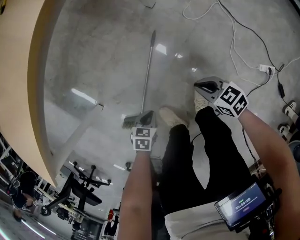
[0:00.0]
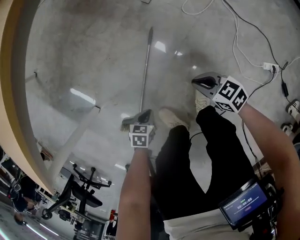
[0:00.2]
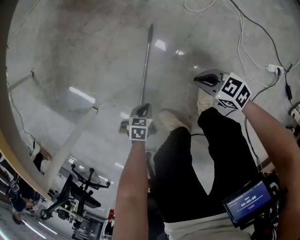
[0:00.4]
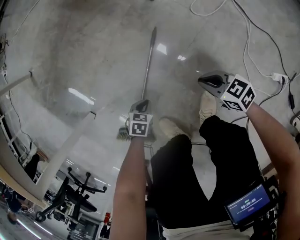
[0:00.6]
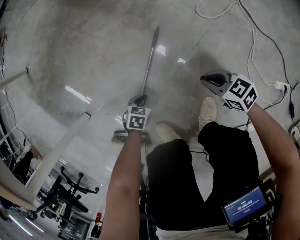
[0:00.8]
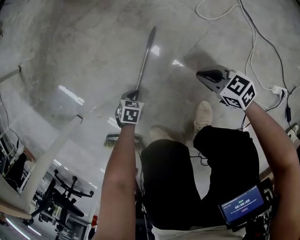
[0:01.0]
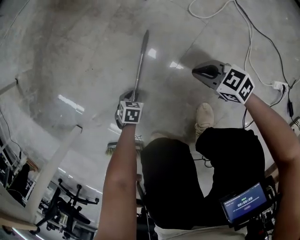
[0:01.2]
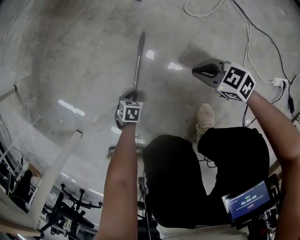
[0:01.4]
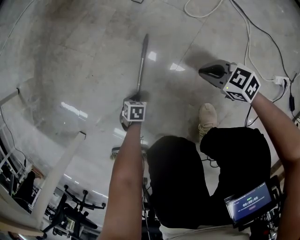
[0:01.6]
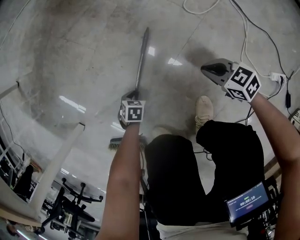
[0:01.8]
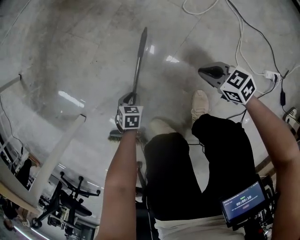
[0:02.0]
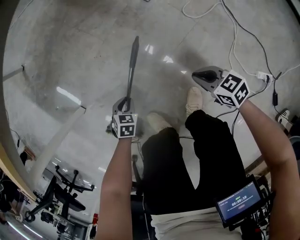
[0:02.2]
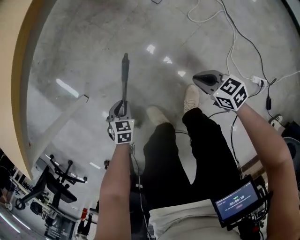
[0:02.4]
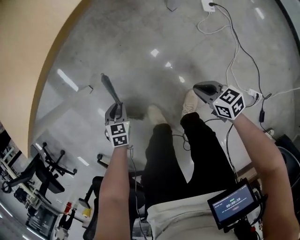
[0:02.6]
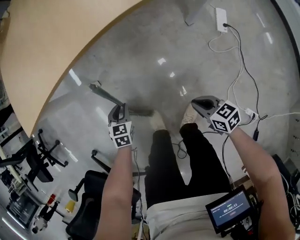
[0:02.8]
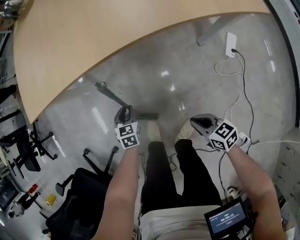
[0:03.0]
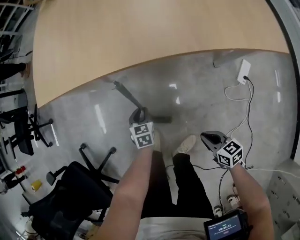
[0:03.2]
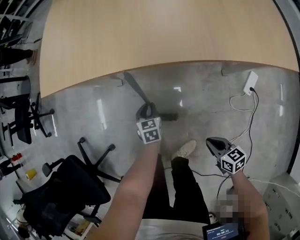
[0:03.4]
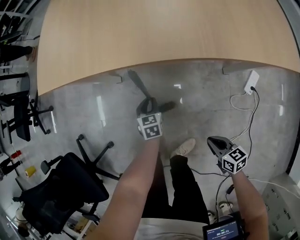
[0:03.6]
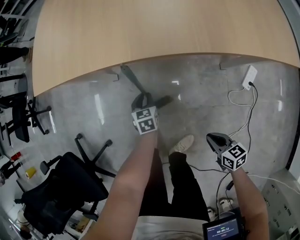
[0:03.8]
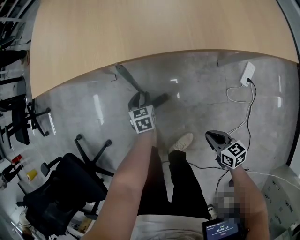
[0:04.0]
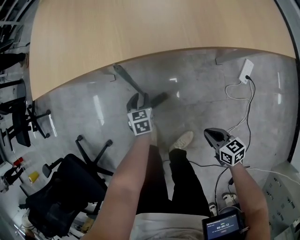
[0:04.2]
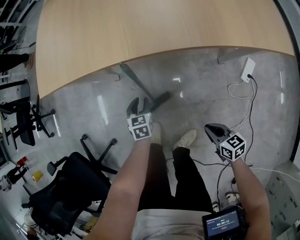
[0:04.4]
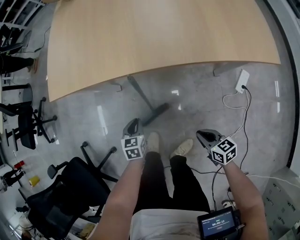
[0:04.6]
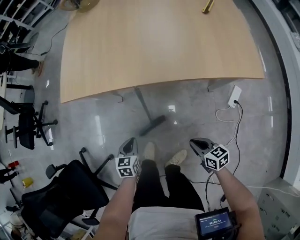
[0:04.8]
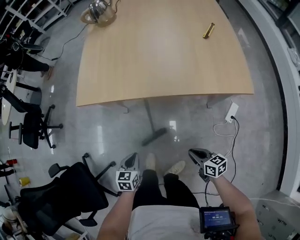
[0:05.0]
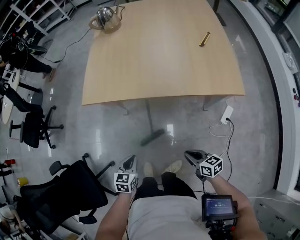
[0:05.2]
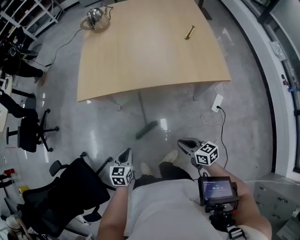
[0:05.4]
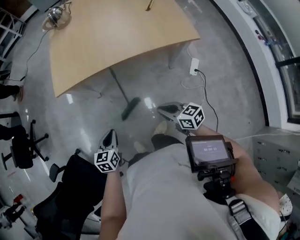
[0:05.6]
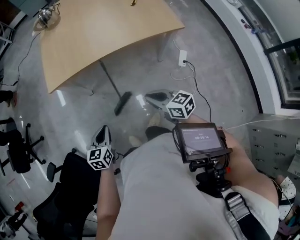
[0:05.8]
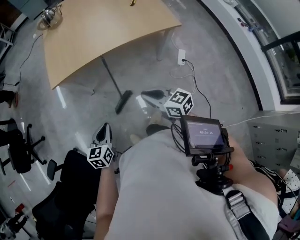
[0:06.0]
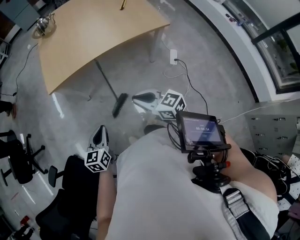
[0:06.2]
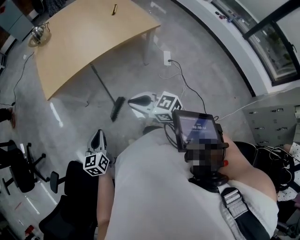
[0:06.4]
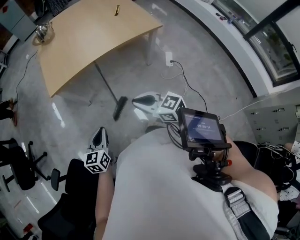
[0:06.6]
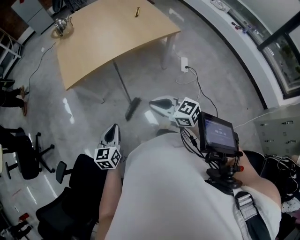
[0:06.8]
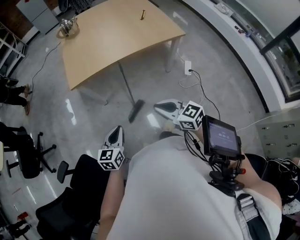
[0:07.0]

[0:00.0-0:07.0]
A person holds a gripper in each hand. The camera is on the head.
0:00.0 to 0:01.4: The right gripper is displaced downward by about 20 cm. Meanwhile the left gripper goes roughly 30 cm downward, and opens.
0:01.4 to 0:02.8: The right gripper moves upward, about 25 cm; the left gripper travels upward by approximately 40 cm, and swivels about 50 degrees.
0:02.8 to 0:04.2: The left gripper shifts roughly 10 cm to the right and forward, and changes its angle by about 30 degrees.
0:04.2 to 0:05.6: The right gripper is displaced upward by approximately 30 cm, while the left gripper heads upward, backward and to the left, covering some 40 cm, rotates some 20 degrees, and closes.
0:05.6 to 0:07.0: The right gripper is displaced upward, backward and to the left by about 20 cm; the left gripper moves upward and backward, roughly 15 cm.

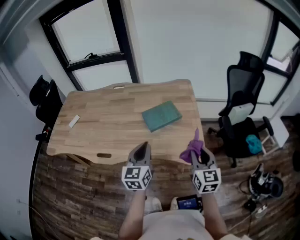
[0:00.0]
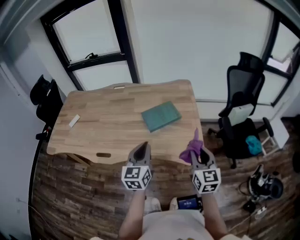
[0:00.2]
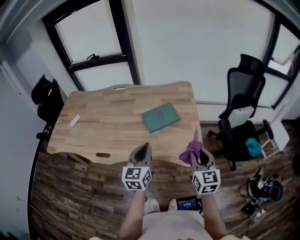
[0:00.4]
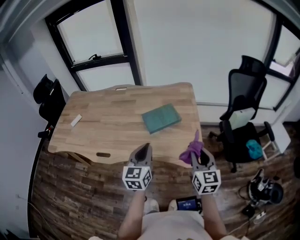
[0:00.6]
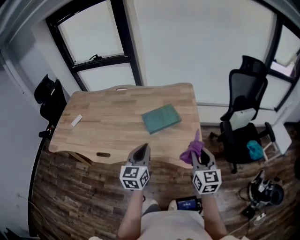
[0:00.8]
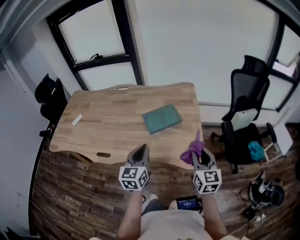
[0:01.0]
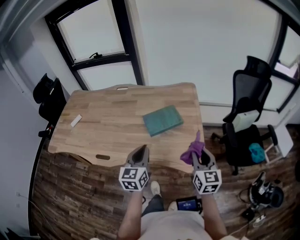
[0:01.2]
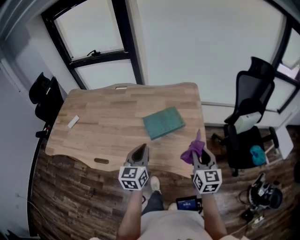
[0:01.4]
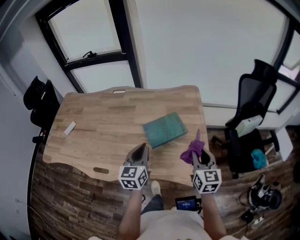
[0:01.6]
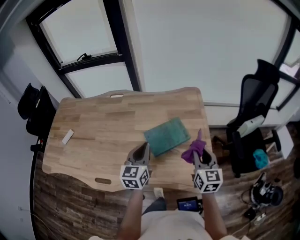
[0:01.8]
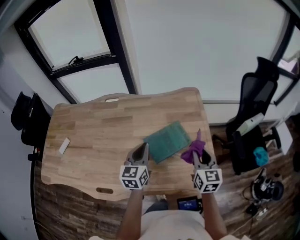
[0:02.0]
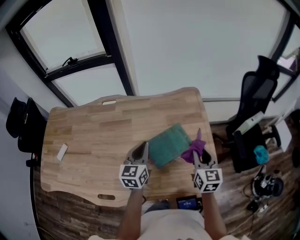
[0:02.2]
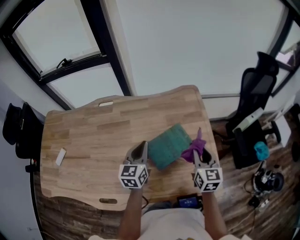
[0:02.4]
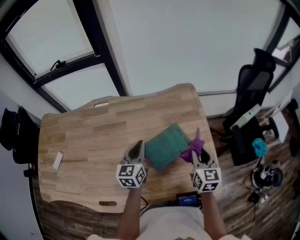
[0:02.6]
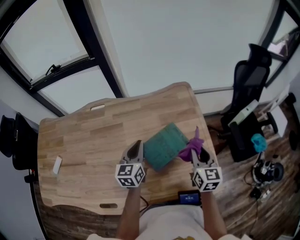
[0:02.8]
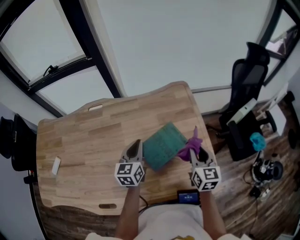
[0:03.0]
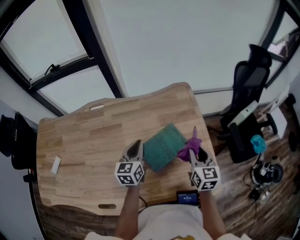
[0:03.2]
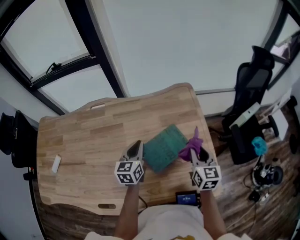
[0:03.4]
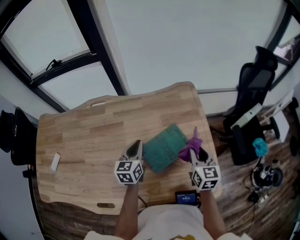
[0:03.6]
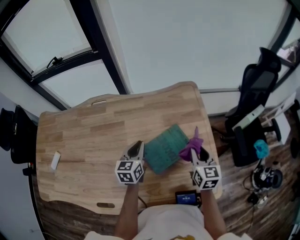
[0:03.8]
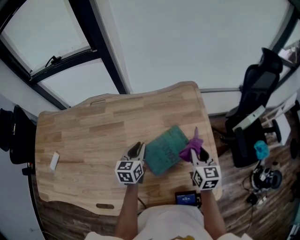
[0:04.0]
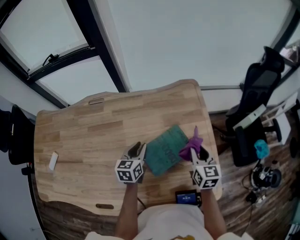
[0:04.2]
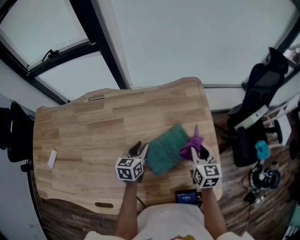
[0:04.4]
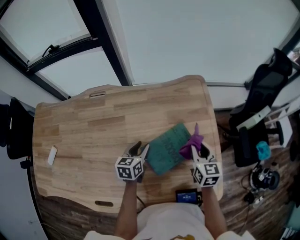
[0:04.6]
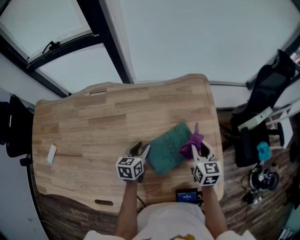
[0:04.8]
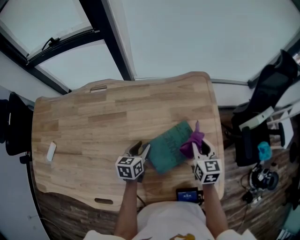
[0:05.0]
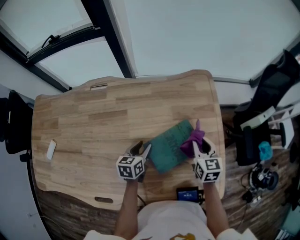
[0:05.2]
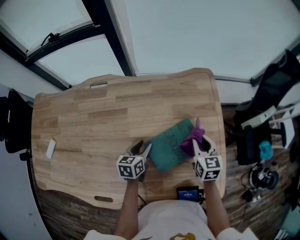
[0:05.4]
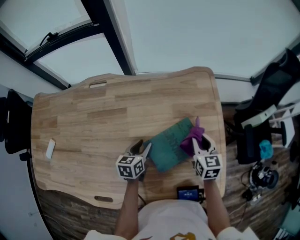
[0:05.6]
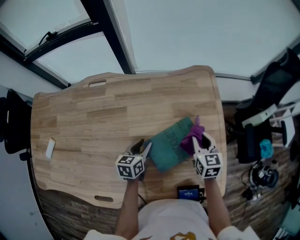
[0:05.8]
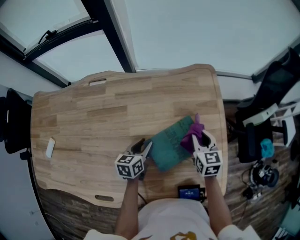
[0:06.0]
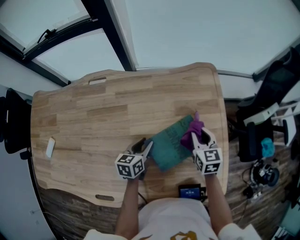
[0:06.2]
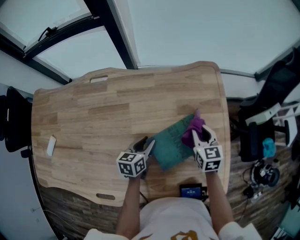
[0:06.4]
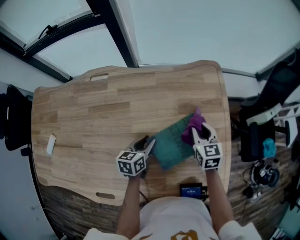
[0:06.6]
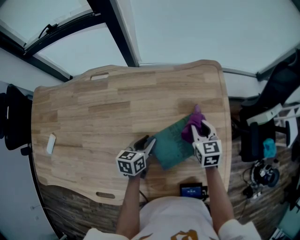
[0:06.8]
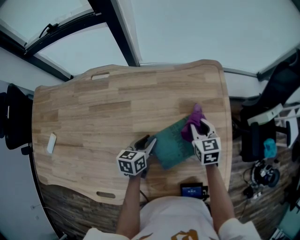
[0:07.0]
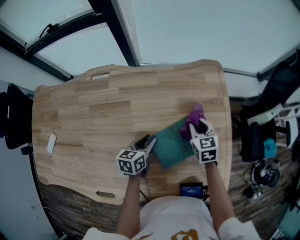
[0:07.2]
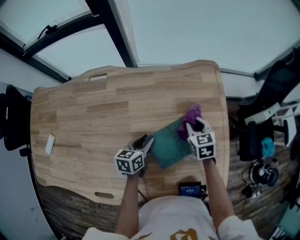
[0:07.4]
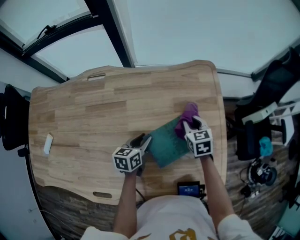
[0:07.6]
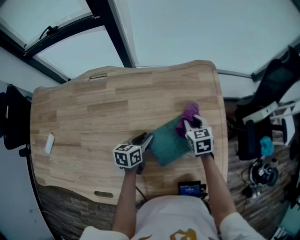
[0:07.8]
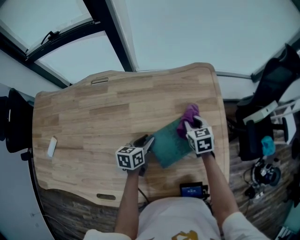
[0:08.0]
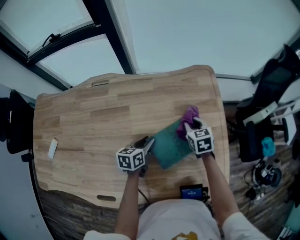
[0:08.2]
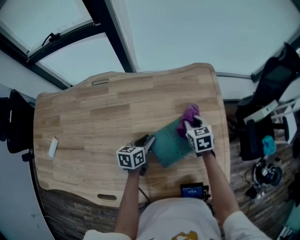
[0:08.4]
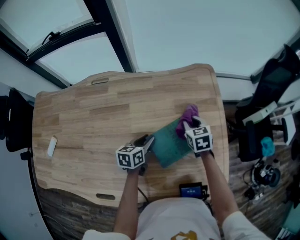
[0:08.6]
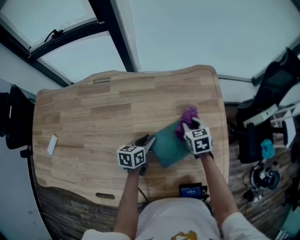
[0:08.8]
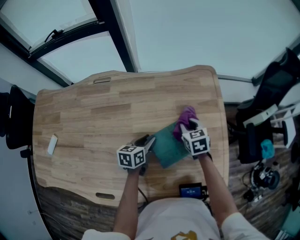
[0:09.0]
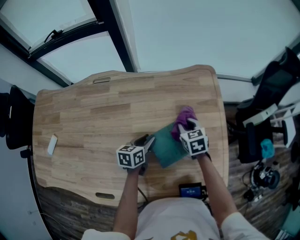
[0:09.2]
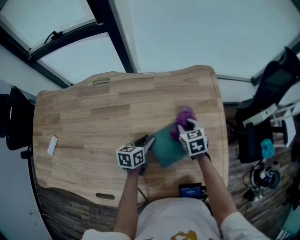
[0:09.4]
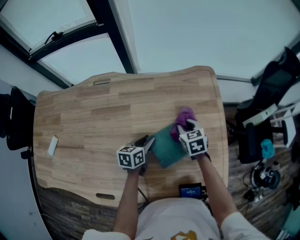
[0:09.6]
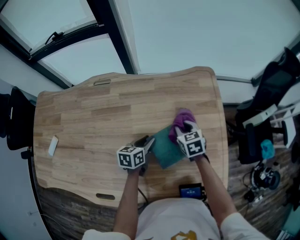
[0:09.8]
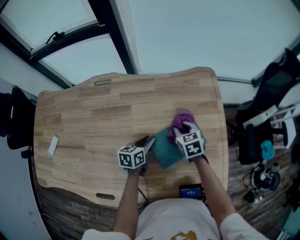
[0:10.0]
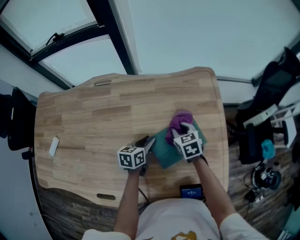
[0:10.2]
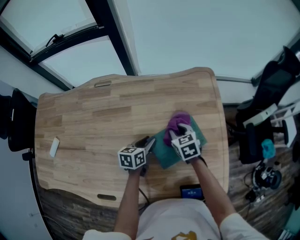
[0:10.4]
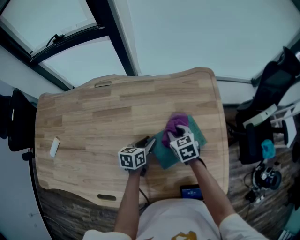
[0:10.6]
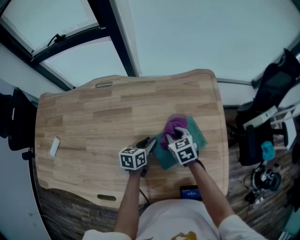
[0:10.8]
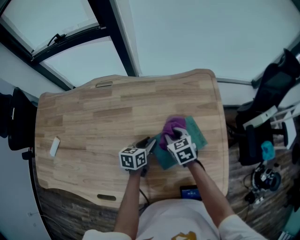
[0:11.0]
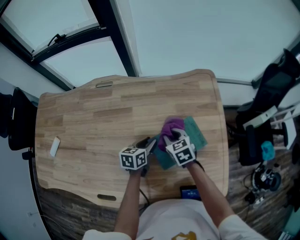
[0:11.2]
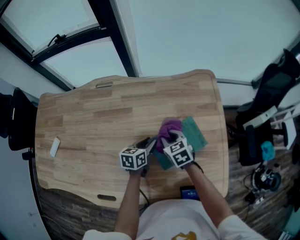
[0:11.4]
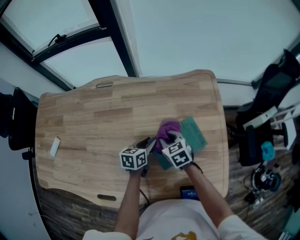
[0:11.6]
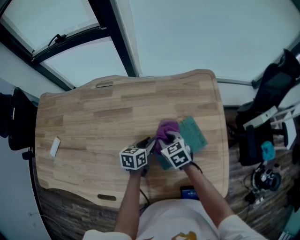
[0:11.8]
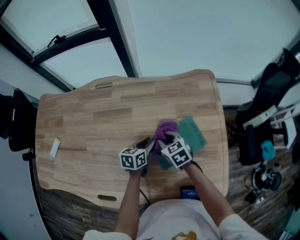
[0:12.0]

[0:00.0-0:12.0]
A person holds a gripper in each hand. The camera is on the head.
0:00.0 to 0:01.6: The grippers both shift forward by roughly 15 cm.
0:01.6 to 0:03.0: The right gripper goes some 10 cm forward, while the left gripper is displaced forward by some 20 cm.
0:03.0 to 0:04.4: The left gripper goes roughly 10 cm downward, and opens up, while the right gripper shifts roughly 10 cm downward and forward.
0:04.4 to 0:06.0: The right gripper goes some 5 cm downward. The left gripper shifts by approximately 5 cm.
0:06.0 to 0:07.6: The right gripper moves roughly 5 cm.
0:07.6 to 0:09.0: The grippers stay close to where they were, moving slightly.
0:09.0 to 0:10.4: The right gripper travels to the left by roughly 5 cm.
0:10.4 to 0:12.0: The right gripper goes some 5 cm to the left.

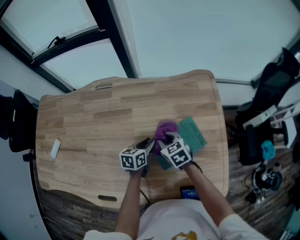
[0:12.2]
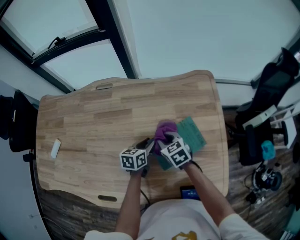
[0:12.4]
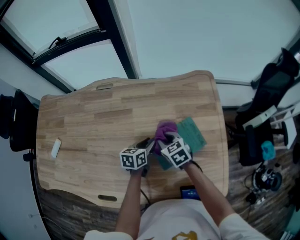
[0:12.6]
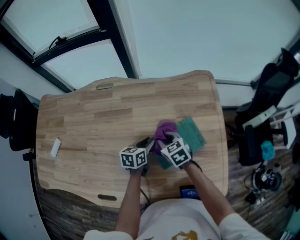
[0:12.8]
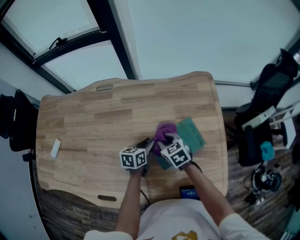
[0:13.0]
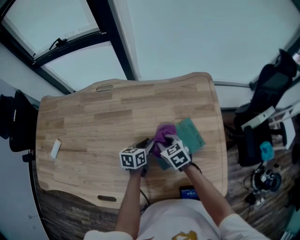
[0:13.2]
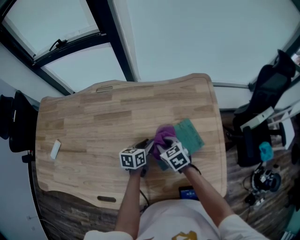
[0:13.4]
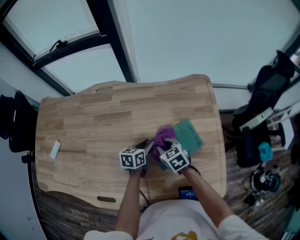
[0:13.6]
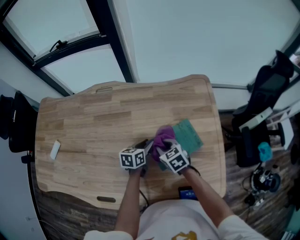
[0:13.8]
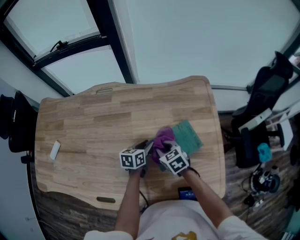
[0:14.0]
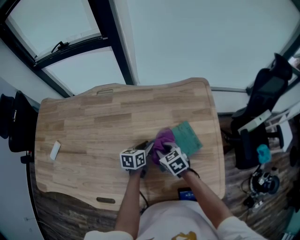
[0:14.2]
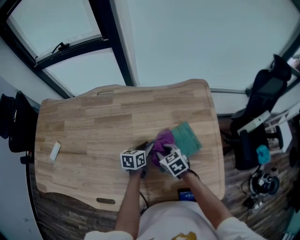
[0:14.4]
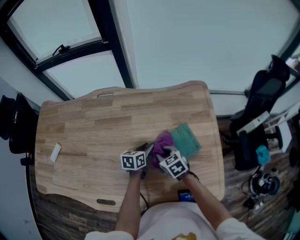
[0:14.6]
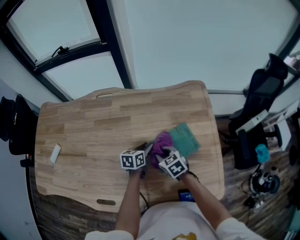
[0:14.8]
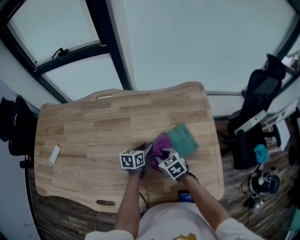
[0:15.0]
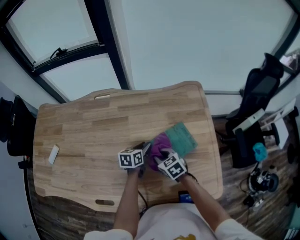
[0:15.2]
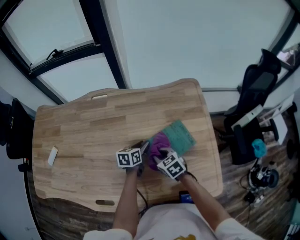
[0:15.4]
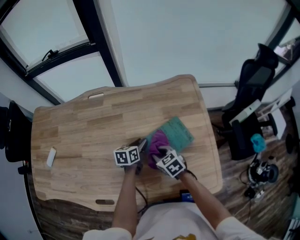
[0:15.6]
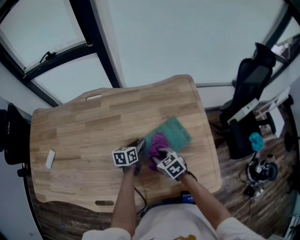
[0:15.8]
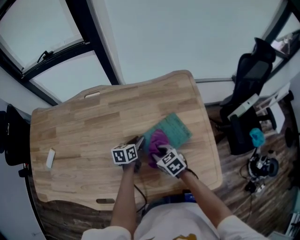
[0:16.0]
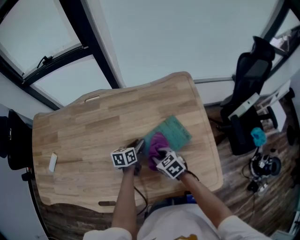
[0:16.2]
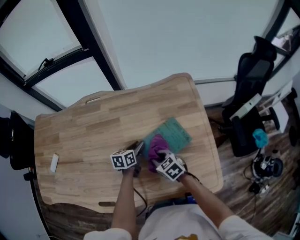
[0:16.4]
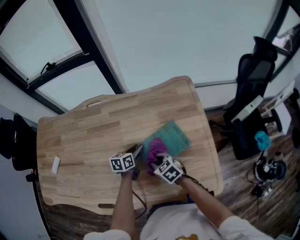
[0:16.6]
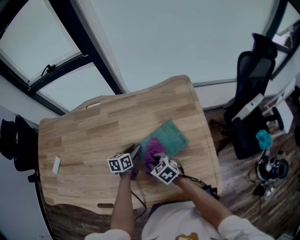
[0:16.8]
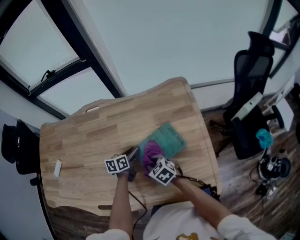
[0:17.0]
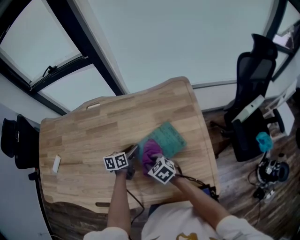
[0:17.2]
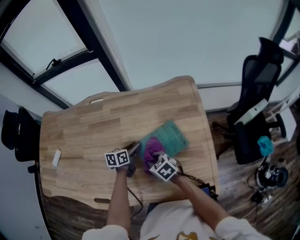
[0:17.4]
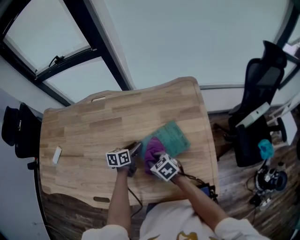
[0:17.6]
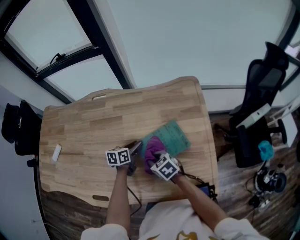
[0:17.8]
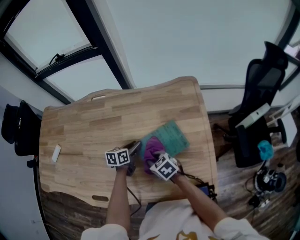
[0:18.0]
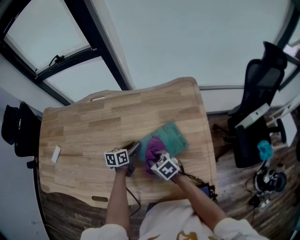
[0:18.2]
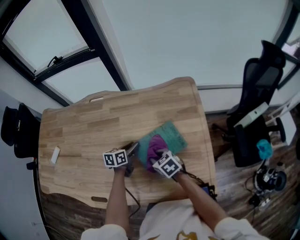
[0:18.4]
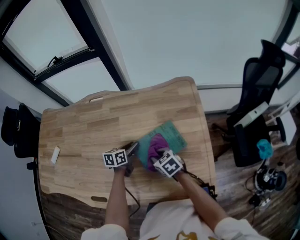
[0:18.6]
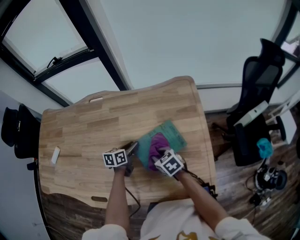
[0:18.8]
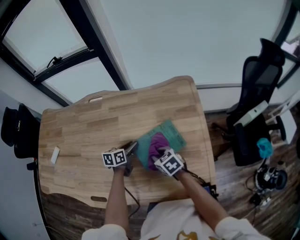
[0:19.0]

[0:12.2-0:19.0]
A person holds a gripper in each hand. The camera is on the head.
0:12.2 to 0:13.6: The grippers move only a little.
0:13.6 to 0:15.0: The grippers stay close to where they were, moving slightly.
0:15.0 to 0:19.0: The grippers move only a little.
